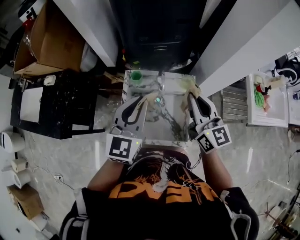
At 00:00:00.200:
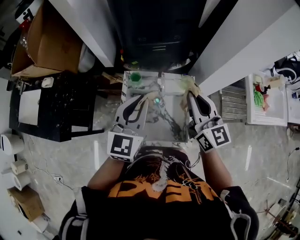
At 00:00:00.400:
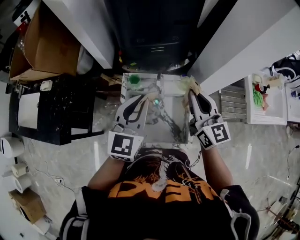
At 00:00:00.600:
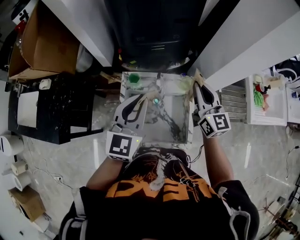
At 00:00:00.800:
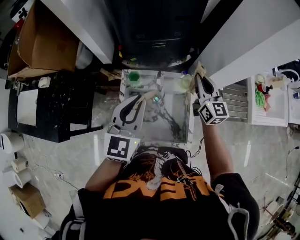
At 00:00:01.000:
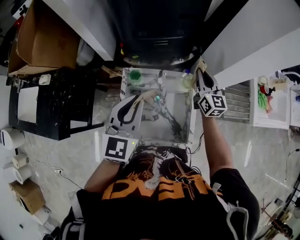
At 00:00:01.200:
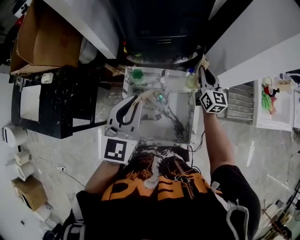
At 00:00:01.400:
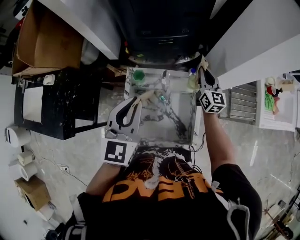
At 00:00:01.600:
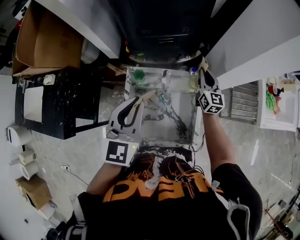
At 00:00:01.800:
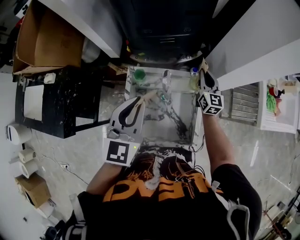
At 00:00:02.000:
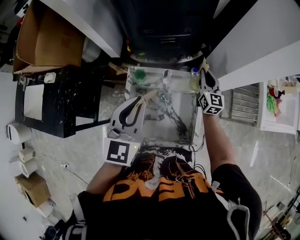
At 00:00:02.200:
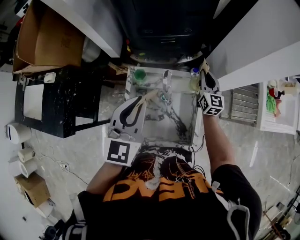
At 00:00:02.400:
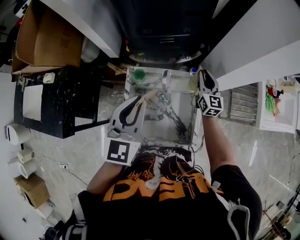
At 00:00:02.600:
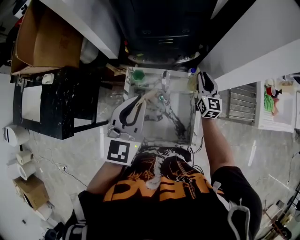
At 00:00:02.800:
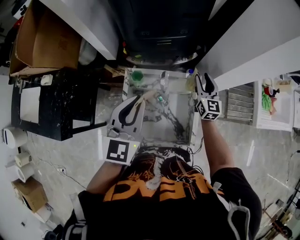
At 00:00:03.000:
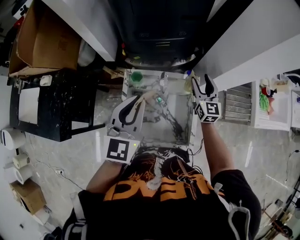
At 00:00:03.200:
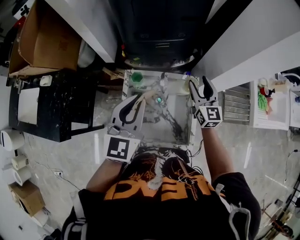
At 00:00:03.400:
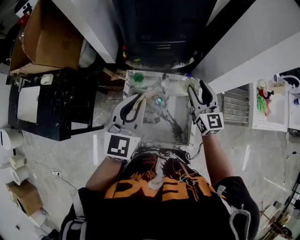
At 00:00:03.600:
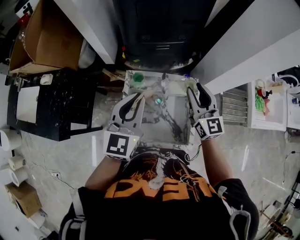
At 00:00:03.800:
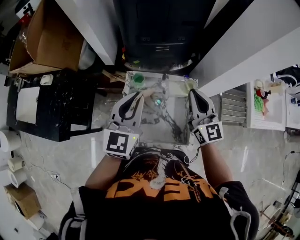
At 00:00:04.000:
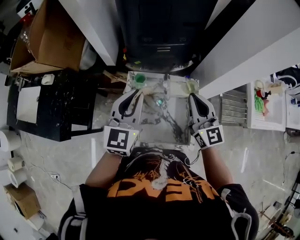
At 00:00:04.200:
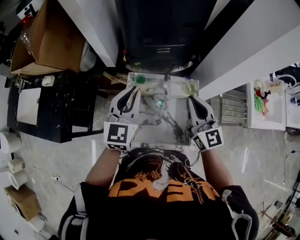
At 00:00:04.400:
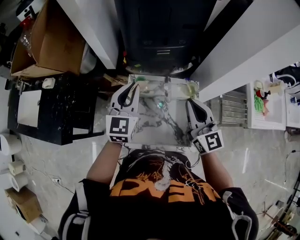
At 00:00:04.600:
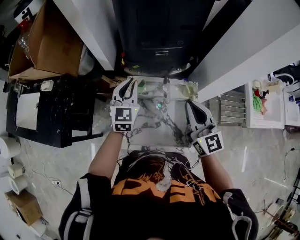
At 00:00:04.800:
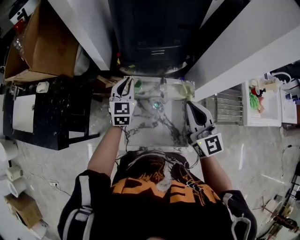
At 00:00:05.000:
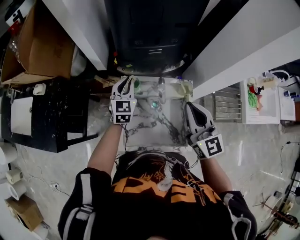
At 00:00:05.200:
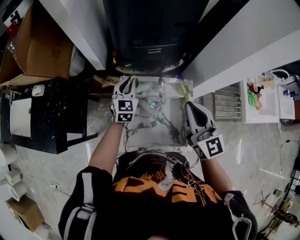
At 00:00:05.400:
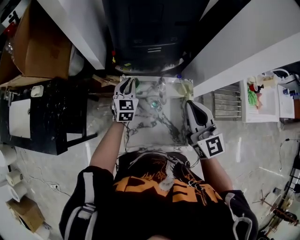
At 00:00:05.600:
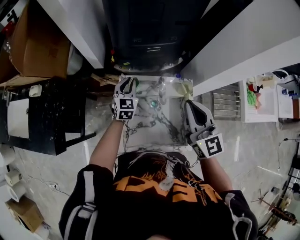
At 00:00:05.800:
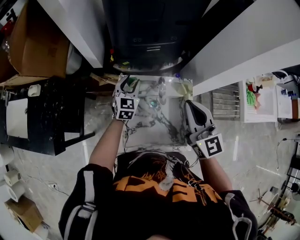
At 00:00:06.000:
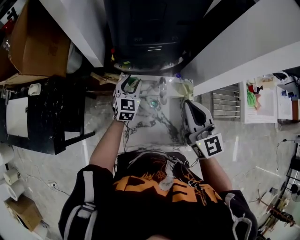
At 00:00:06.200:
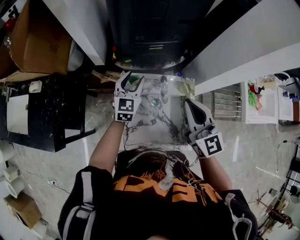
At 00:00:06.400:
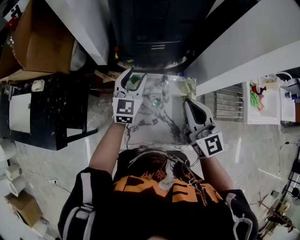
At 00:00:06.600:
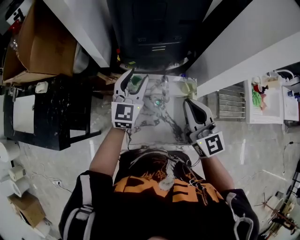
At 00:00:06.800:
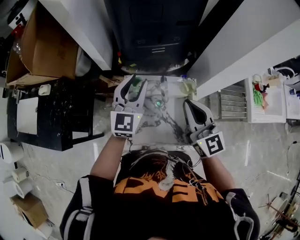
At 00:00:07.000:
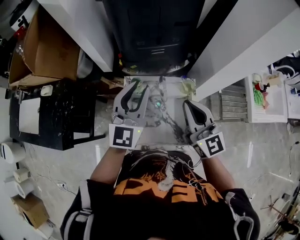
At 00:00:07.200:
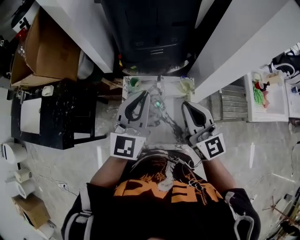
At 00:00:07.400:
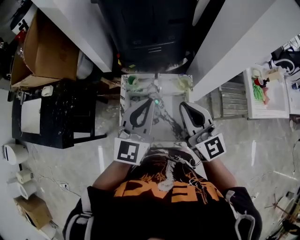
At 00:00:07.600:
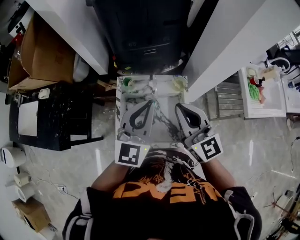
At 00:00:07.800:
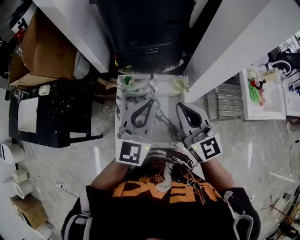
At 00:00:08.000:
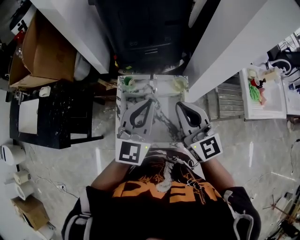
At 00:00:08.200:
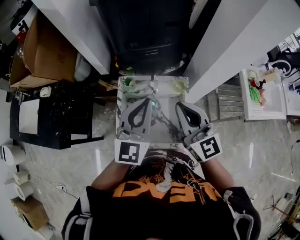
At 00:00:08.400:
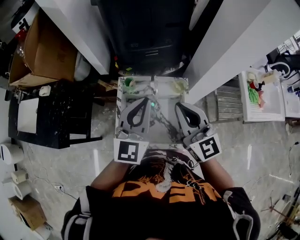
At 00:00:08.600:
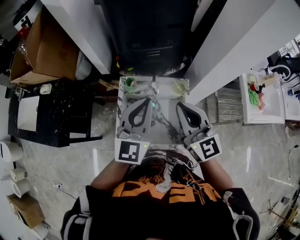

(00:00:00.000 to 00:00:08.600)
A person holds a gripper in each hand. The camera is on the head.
00:00:00.000 - 00:00:01.400: The left gripper moves forward, approximately 5 cm. Meanwhile the right gripper goes approximately 25 cm forward and downward.
00:00:01.400 - 00:00:02.800: The right gripper opens.
00:00:02.800 - 00:00:04.400: The right gripper goes about 25 cm upward, backward and to the left, and closes, while the left gripper moves to the left, roughly 5 cm.
00:00:04.400 - 00:00:05.800: The left gripper moves downward and forward, roughly 20 cm, and opens up.
00:00:05.800 - 00:00:07.200: The right gripper heads backward, covering approximately 5 cm; the left gripper is displaced upward and backward by approximately 30 cm, changes its angle by some 30 degrees, and closes.

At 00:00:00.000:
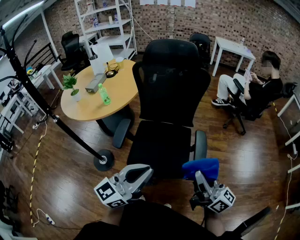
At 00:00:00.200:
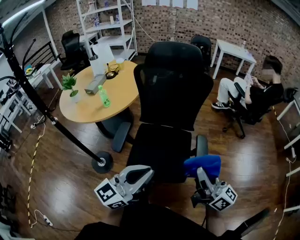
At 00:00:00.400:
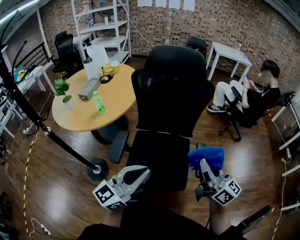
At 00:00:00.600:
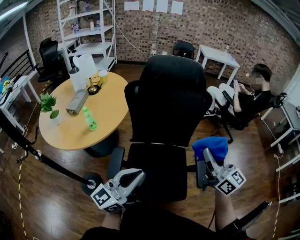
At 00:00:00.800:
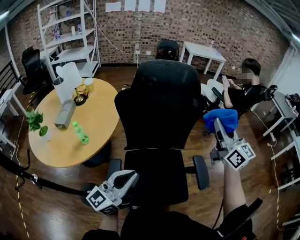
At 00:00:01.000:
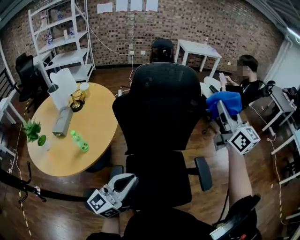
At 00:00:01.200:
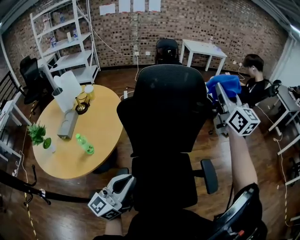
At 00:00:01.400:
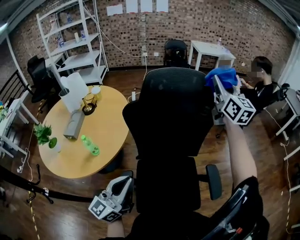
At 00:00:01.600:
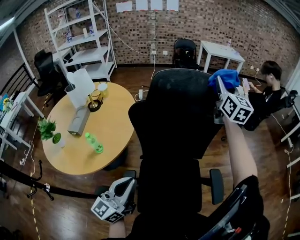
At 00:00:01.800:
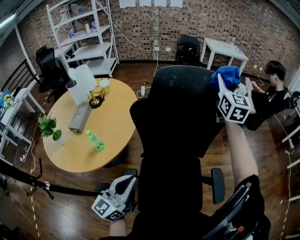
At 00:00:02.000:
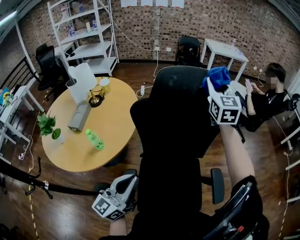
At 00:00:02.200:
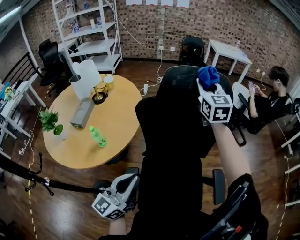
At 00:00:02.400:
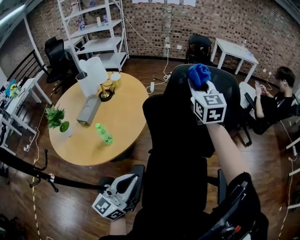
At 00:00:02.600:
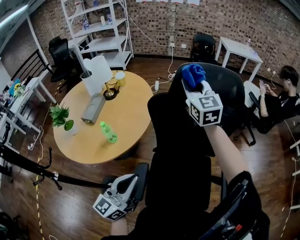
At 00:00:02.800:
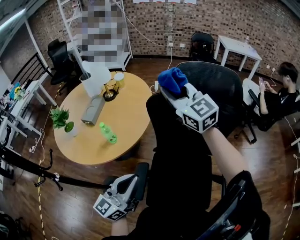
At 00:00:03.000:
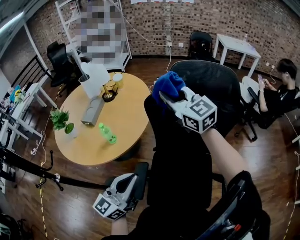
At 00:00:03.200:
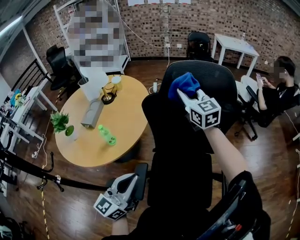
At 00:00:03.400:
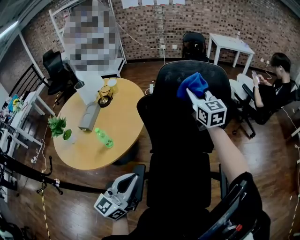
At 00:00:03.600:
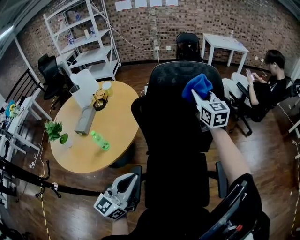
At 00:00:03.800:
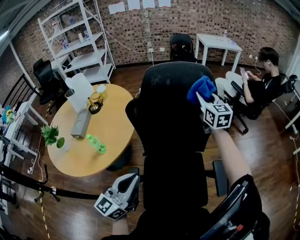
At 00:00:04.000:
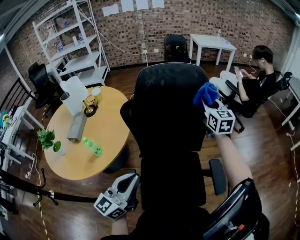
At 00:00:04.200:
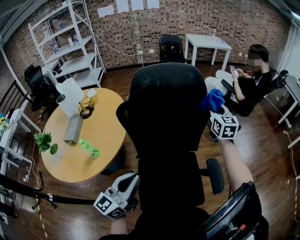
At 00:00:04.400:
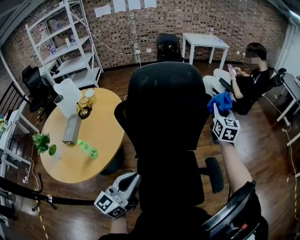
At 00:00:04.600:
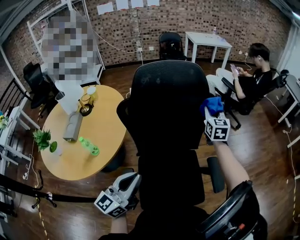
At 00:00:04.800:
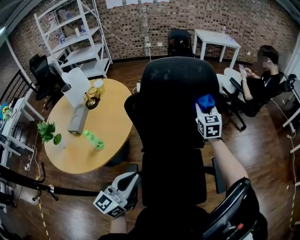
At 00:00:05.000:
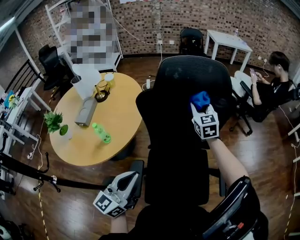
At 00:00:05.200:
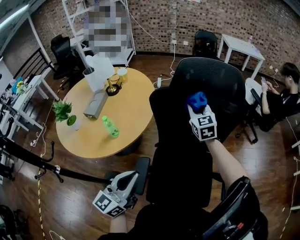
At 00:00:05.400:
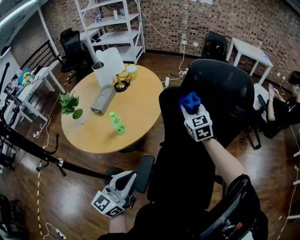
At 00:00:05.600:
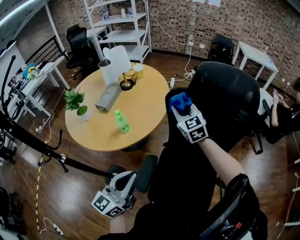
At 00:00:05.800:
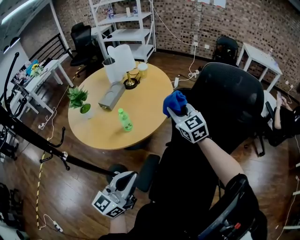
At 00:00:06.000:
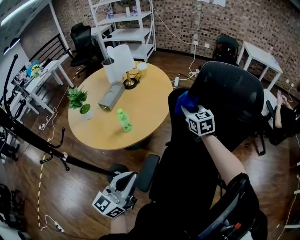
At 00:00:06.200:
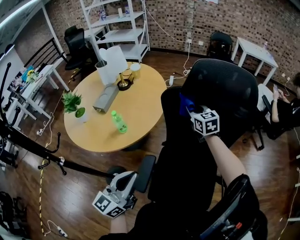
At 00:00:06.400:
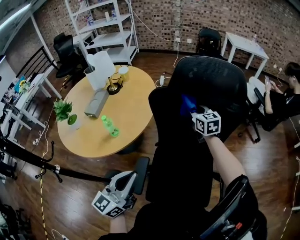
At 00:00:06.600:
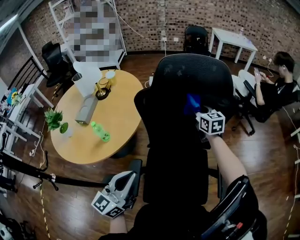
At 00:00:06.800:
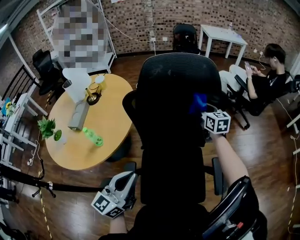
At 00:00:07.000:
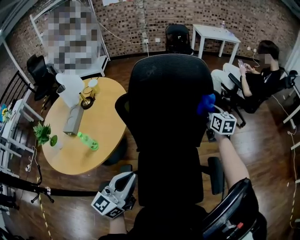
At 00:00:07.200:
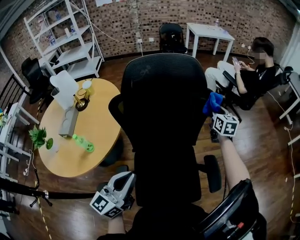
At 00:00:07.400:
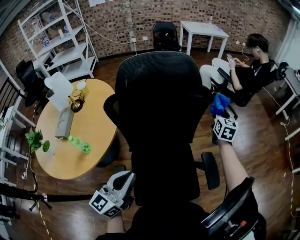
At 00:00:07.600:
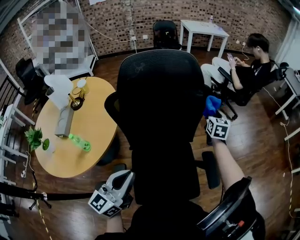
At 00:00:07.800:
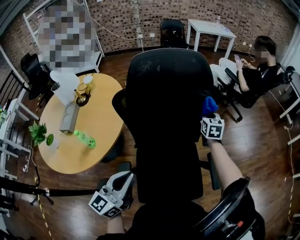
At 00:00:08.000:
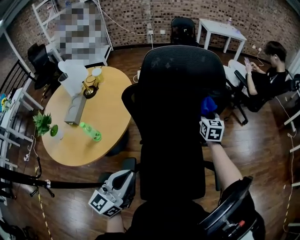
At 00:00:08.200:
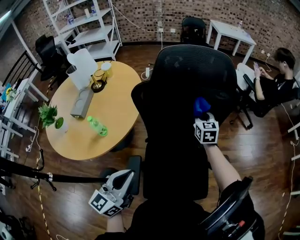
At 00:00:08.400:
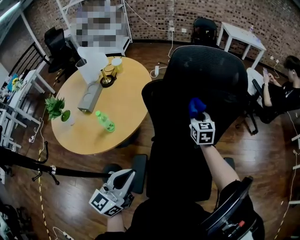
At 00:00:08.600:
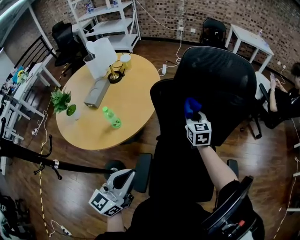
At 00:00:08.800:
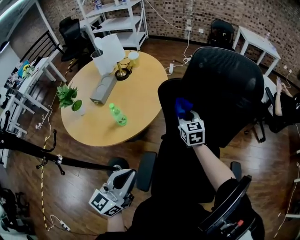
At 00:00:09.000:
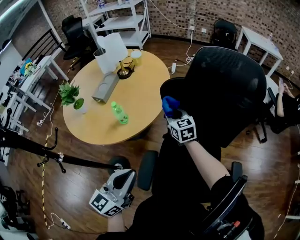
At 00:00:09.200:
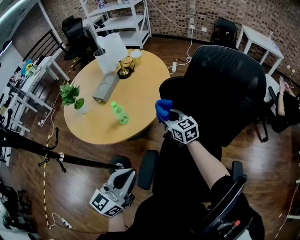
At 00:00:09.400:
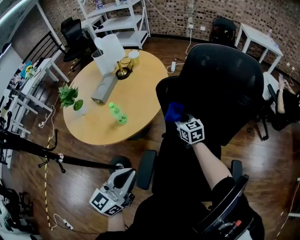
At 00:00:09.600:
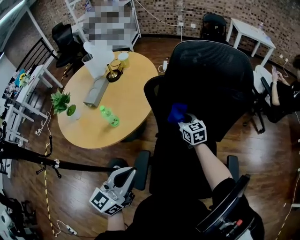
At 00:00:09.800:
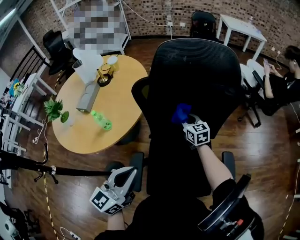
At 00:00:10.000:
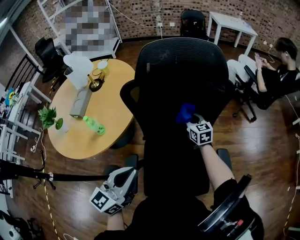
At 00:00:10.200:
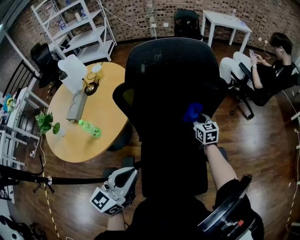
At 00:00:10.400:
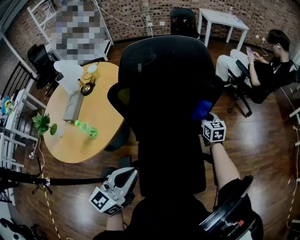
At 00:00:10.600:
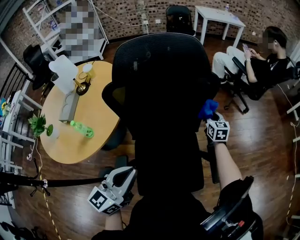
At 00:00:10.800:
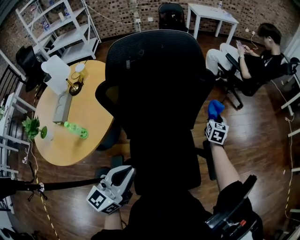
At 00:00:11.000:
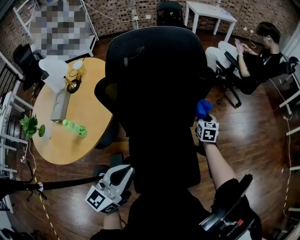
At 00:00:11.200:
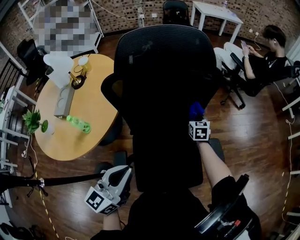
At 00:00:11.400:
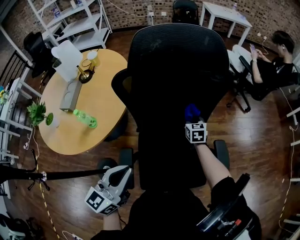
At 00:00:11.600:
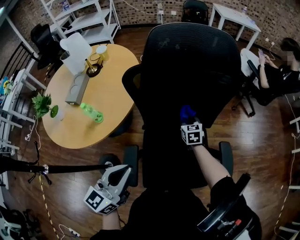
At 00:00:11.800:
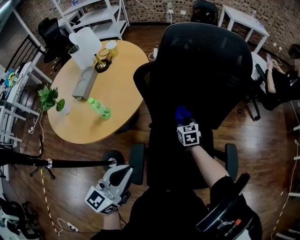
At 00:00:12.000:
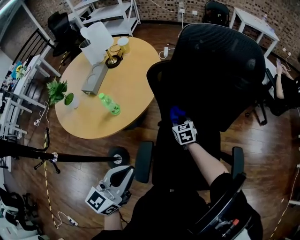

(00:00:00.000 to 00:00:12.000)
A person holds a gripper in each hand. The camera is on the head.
00:00:00.000 - 00:00:01.600: The right gripper shifts approximately 60 cm forward, and changes its angle by roughly 50 degrees; the left gripper moves to the left and forward, roughly 35 cm.
00:00:01.600 - 00:00:03.000: The right gripper changes place by about 30 cm, and swivels roughly 50 degrees.
00:00:03.000 - 00:00:04.400: The left gripper changes place by some 10 cm. Meanwhile the right gripper shifts by approximately 40 cm, and changes its angle by approximately 60 degrees.
00:00:04.400 - 00:00:06.000: The left gripper moves about 15 cm, and swivels approximately 30 degrees. Meanwhile the right gripper ends up roughly 40 cm from where it was, and changes its angle by some 50 degrees.
00:00:06.000 - 00:00:07.600: The right gripper ends up some 50 cm from where it was, and changes its angle by some 60 degrees; the left gripper changes place by roughly 15 cm, and swivels some 30 degrees.
00:00:07.600 - 00:00:09.000: The right gripper shifts by approximately 50 cm, and turns by some 60 degrees, while the left gripper shifts by some 15 cm, and changes its angle by roughly 20 degrees.
00:00:09.000 - 00:00:10.400: The left gripper ends up approximately 15 cm from where it was. The right gripper moves roughly 40 cm, and changes its angle by approximately 30 degrees.
00:00:10.400 - 00:00:12.000: The left gripper changes place by about 15 cm. The right gripper changes place by about 35 cm, and turns by roughly 30 degrees.

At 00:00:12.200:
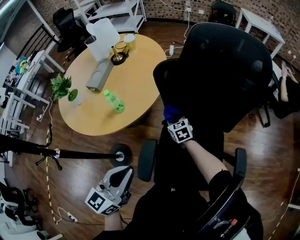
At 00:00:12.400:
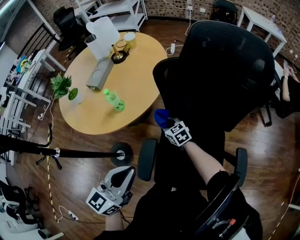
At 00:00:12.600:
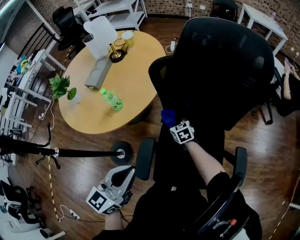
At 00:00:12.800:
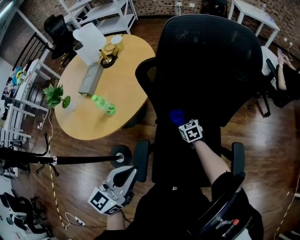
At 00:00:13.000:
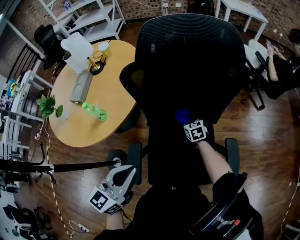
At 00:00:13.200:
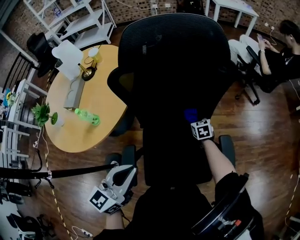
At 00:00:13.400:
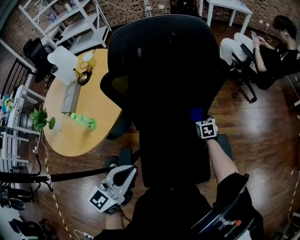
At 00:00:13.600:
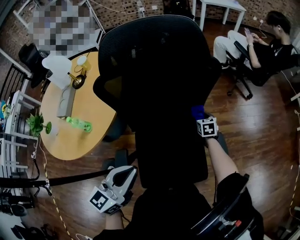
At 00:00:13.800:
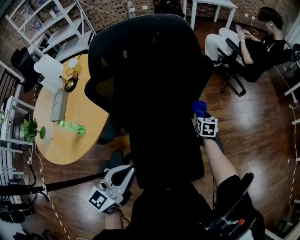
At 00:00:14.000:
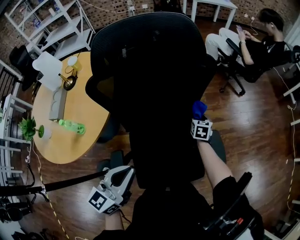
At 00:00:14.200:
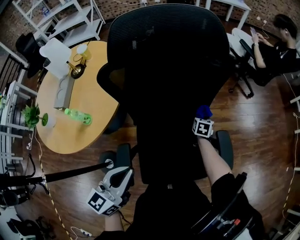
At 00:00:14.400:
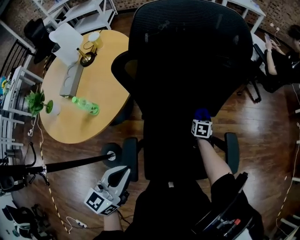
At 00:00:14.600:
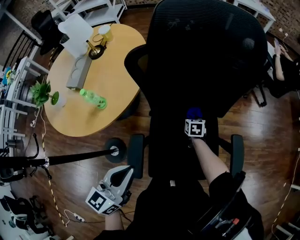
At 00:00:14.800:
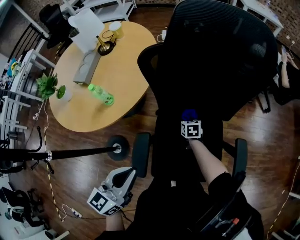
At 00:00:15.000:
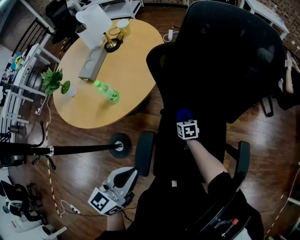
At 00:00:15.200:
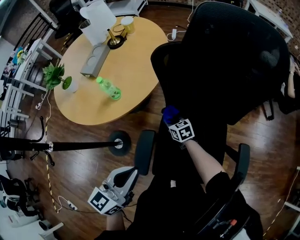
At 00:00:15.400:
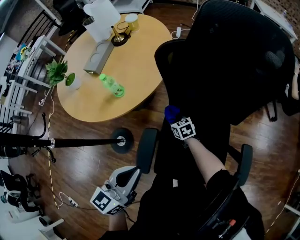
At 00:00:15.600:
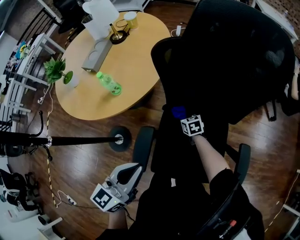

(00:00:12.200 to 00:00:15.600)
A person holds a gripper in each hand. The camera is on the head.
00:00:12.200 - 00:00:13.800: The right gripper moves approximately 40 cm, and swivels some 50 degrees. The left gripper ends up about 15 cm from where it was, and rotates some 20 degrees.
00:00:13.800 - 00:00:15.600: The right gripper moves approximately 40 cm, and changes its angle by roughly 50 degrees; the left gripper ends up about 10 cm from where it was, and turns by approximately 20 degrees.
